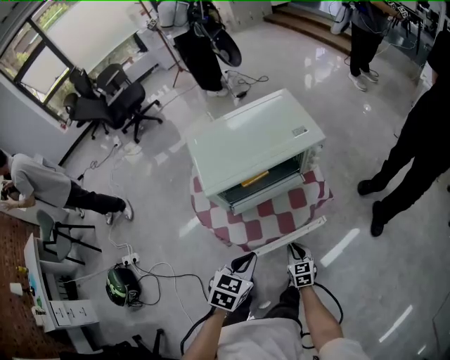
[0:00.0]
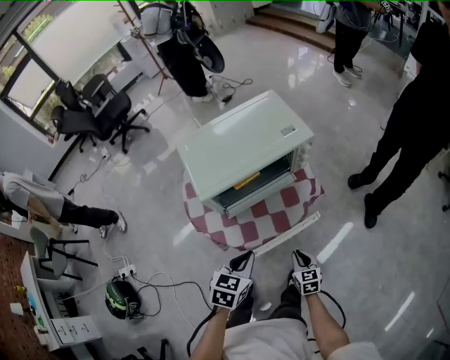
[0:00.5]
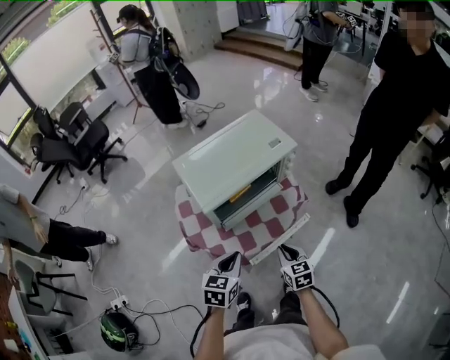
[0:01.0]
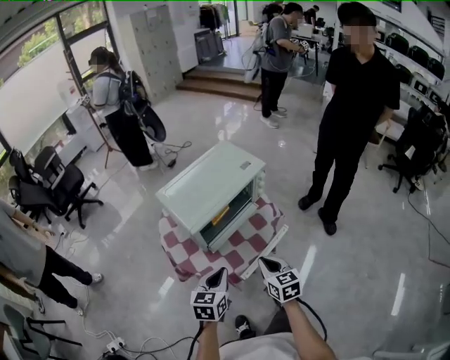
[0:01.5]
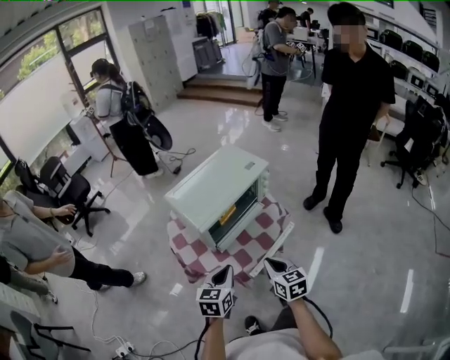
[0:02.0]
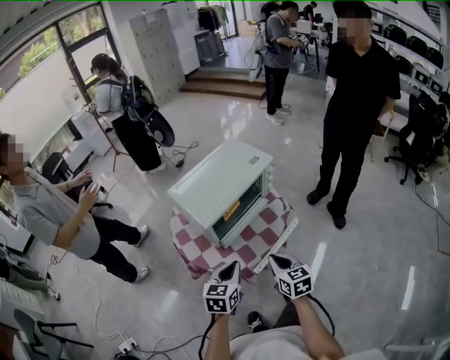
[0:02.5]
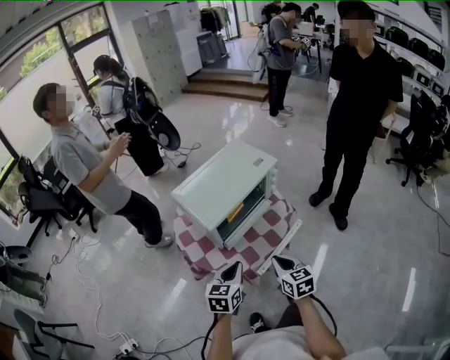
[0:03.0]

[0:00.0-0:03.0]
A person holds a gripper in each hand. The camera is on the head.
0:00.0 to 0:01.5: The right gripper is displaced upward by some 20 cm. Meanwhile the left gripper moves to the left, roughly 10 cm.
0:01.5 to 0:03.0: The grippers make only small movements.

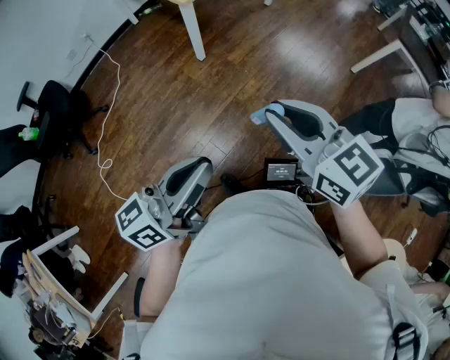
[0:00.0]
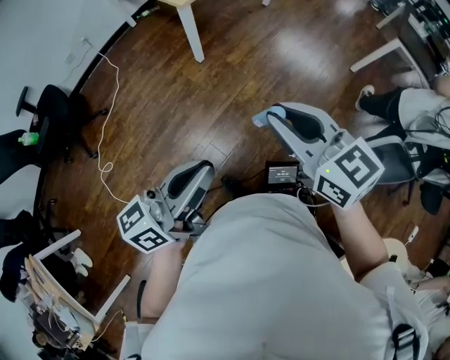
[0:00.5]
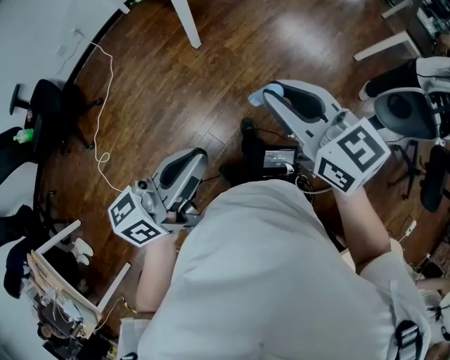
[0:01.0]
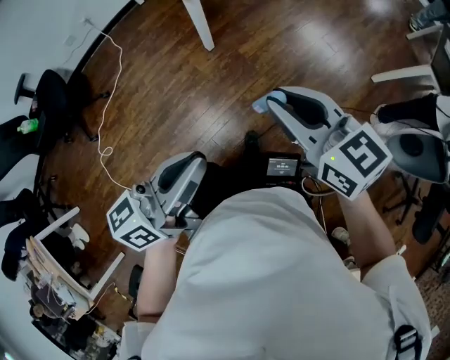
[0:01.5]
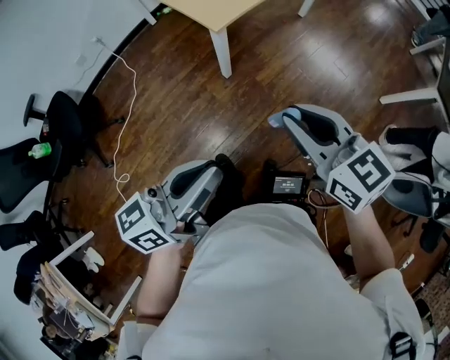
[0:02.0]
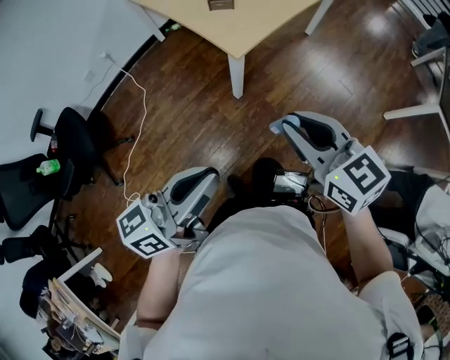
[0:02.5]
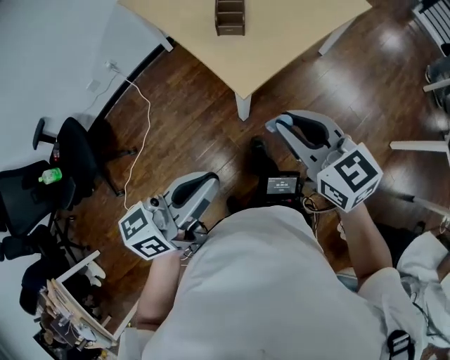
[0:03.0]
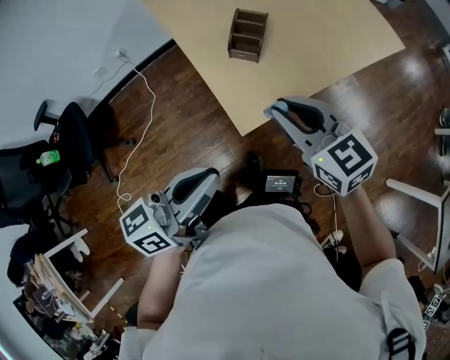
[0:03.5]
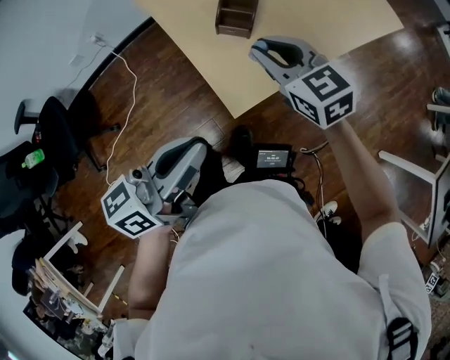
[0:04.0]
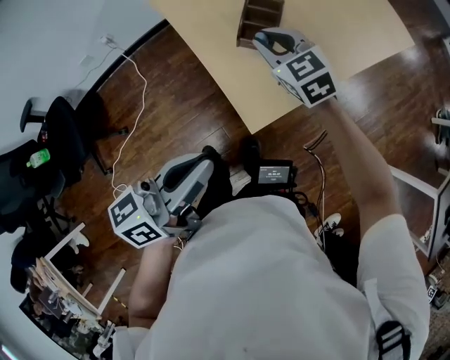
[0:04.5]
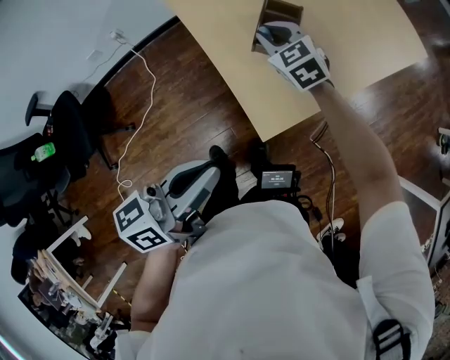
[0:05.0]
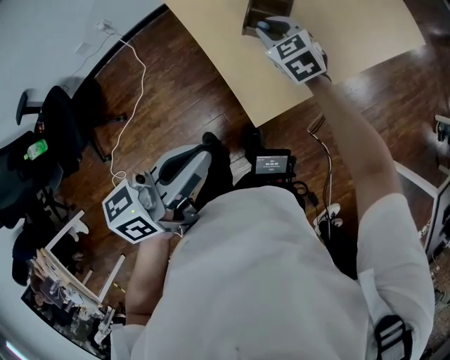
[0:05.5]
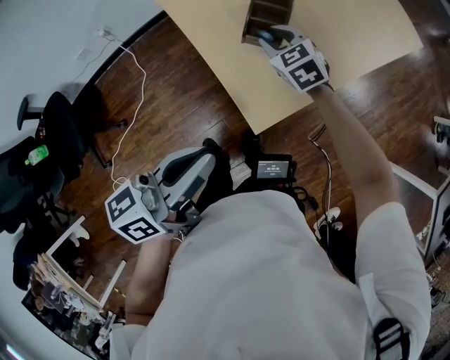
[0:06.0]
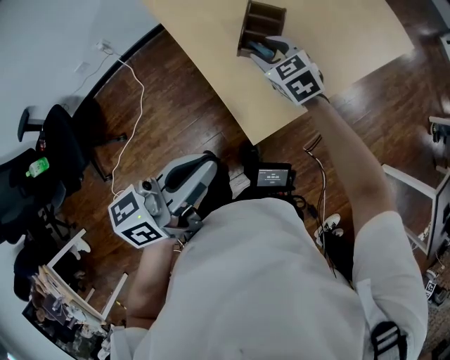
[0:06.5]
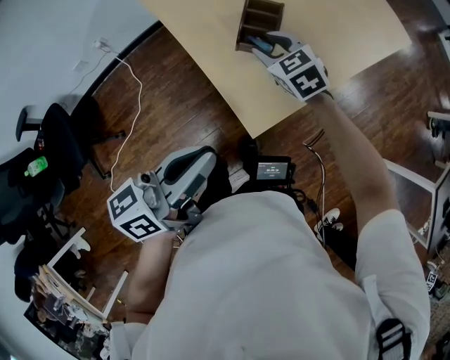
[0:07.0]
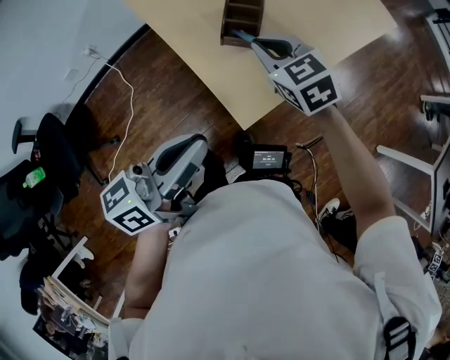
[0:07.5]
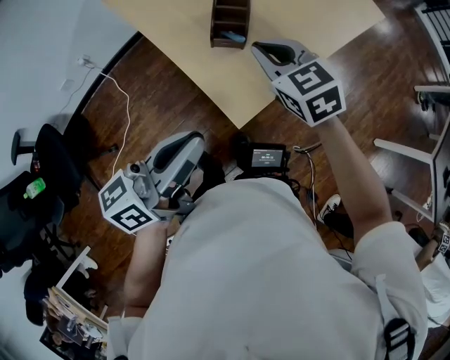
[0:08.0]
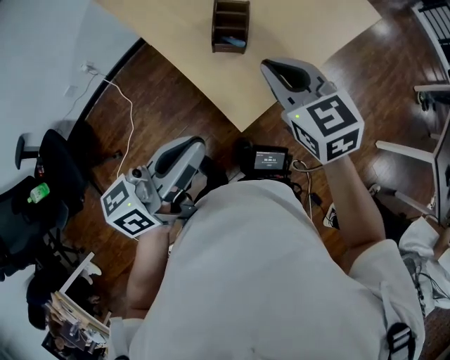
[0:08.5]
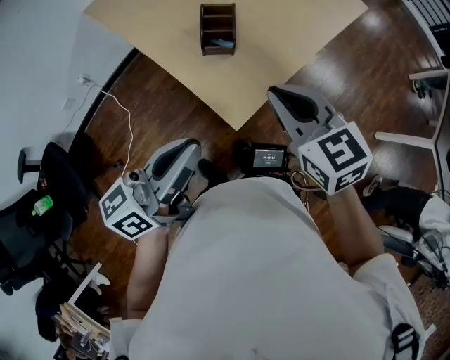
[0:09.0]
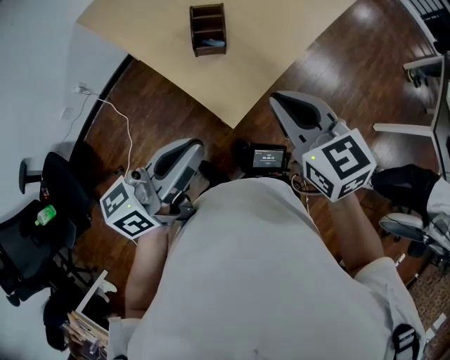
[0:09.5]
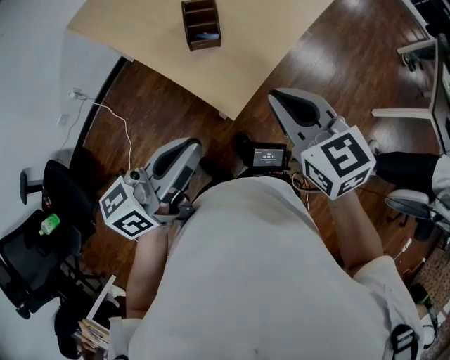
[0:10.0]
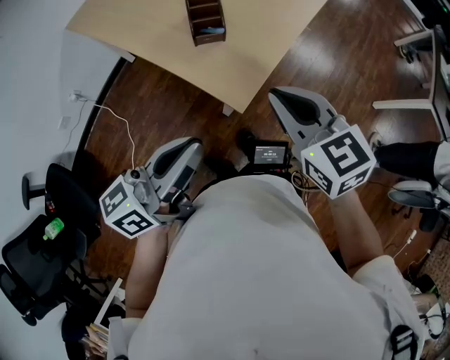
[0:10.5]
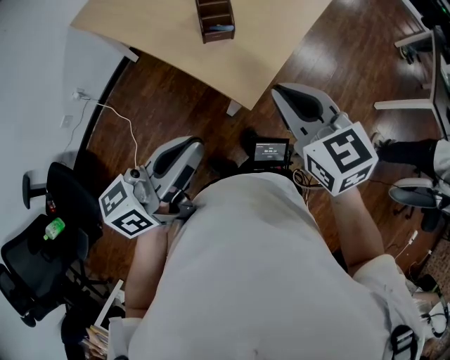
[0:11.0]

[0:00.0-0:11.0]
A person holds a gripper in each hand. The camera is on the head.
0:00.0 to 0:02.0: Both grippers travel together forward, some 25 cm.
0:02.0 to 0:03.5: Both grippers travel together forward, about 40 cm.
0:03.5 to 0:05.5: The right gripper goes approximately 30 cm forward and downward, and rotates roughly 30 degrees. Meanwhile the left gripper travels forward and to the left by roughly 10 cm.
0:05.5 to 0:07.5: The right gripper is displaced upward and backward by roughly 10 cm, and opens and closes again.
0:07.5 to 0:09.0: The right gripper is displaced backward, upward and to the right by roughly 15 cm.
0:09.0 to 0:11.0: Both grippers travel together backward, roughly 5 cm.

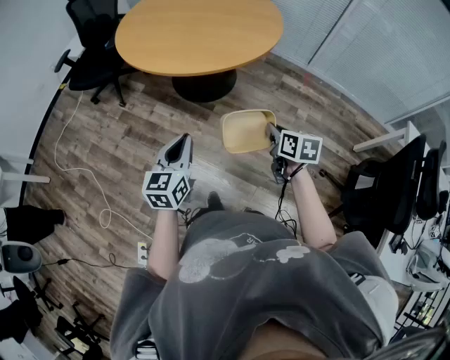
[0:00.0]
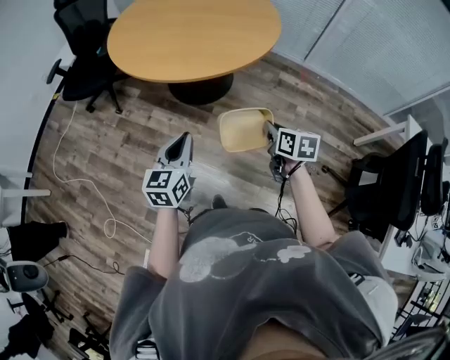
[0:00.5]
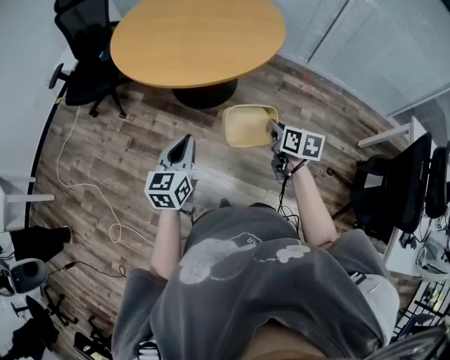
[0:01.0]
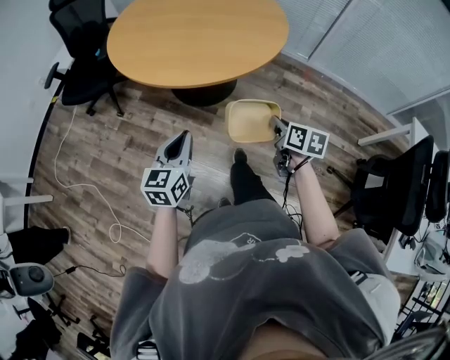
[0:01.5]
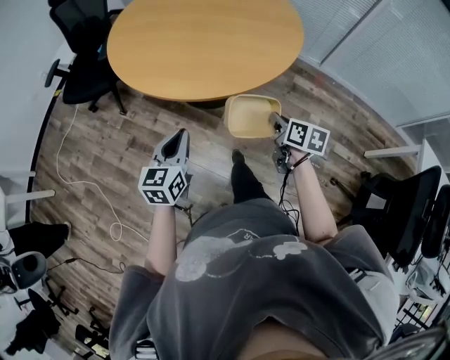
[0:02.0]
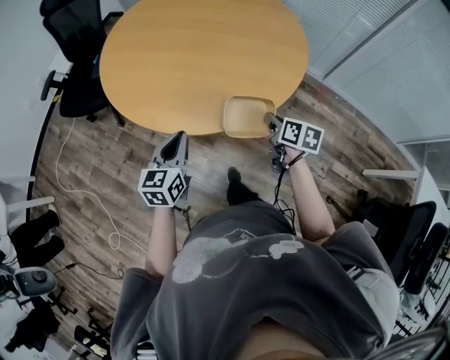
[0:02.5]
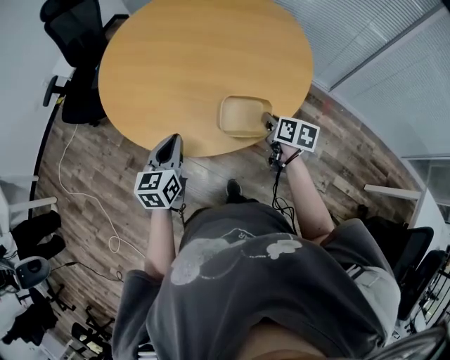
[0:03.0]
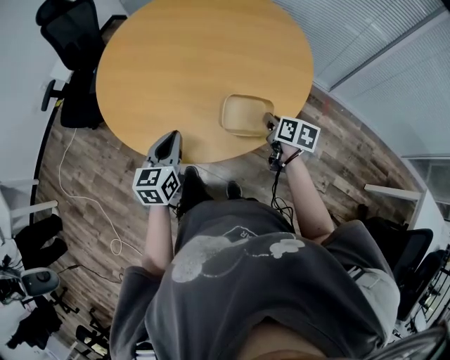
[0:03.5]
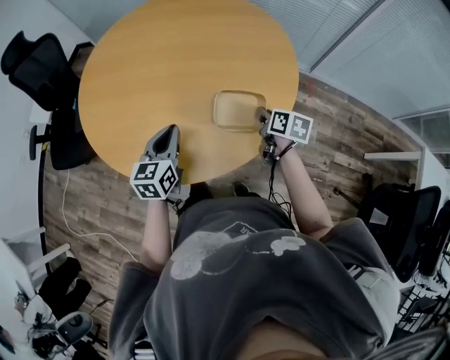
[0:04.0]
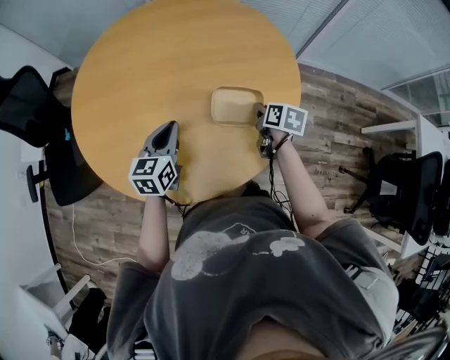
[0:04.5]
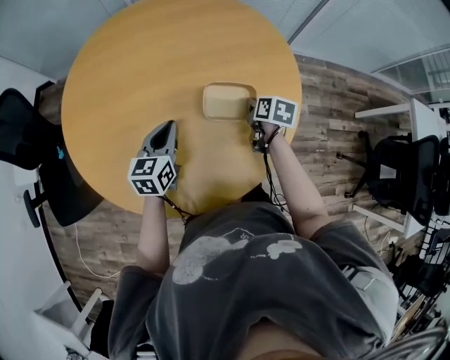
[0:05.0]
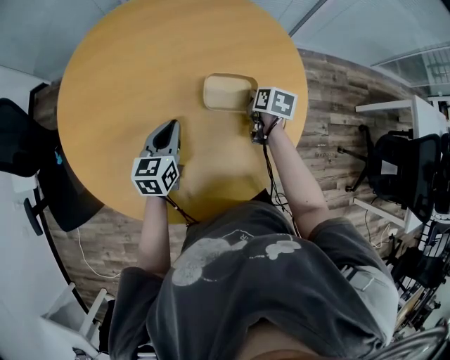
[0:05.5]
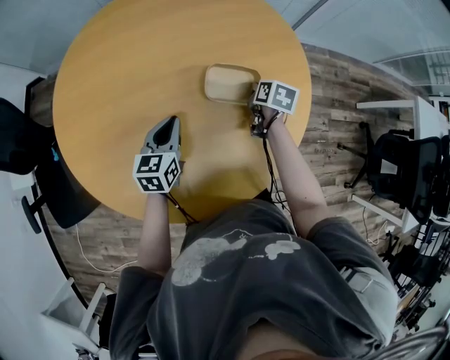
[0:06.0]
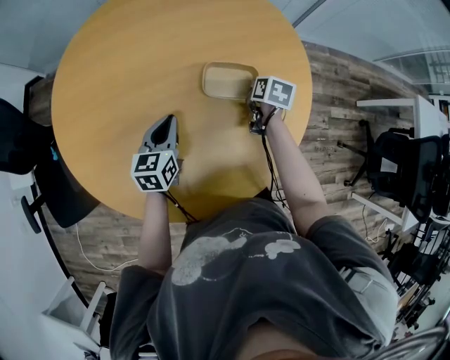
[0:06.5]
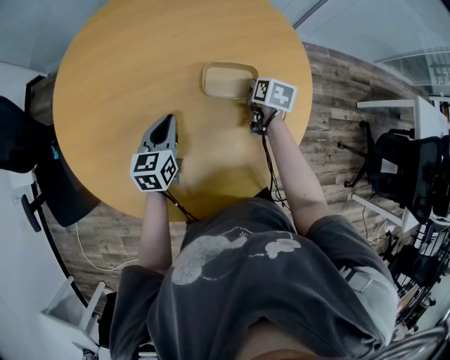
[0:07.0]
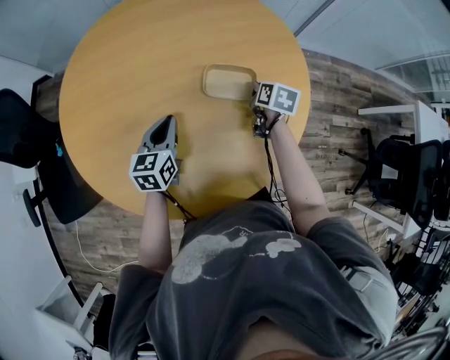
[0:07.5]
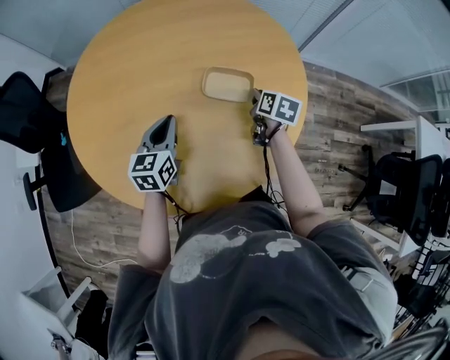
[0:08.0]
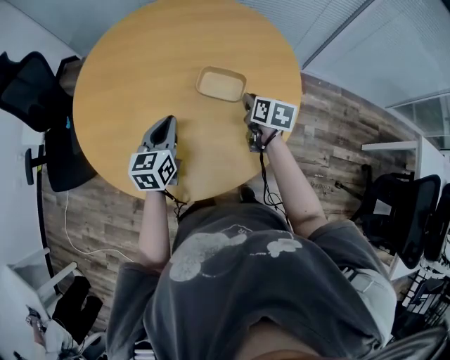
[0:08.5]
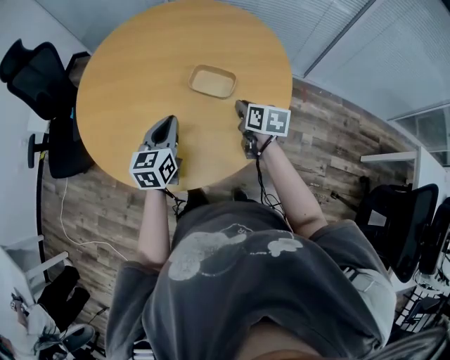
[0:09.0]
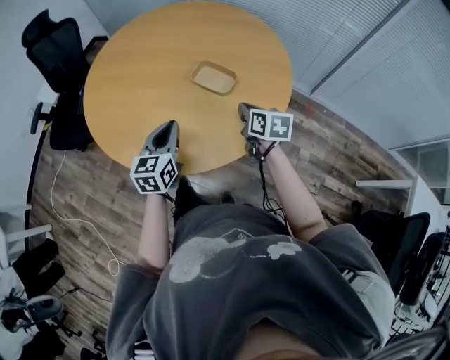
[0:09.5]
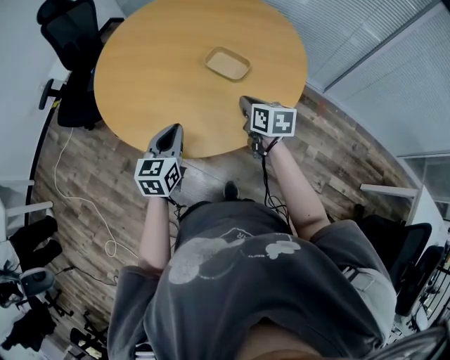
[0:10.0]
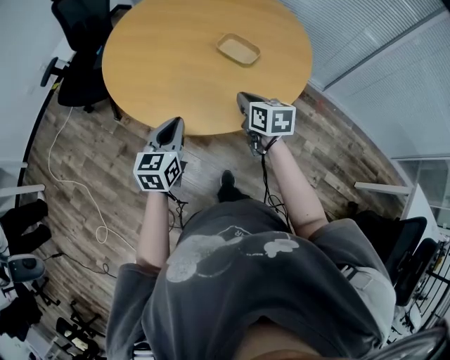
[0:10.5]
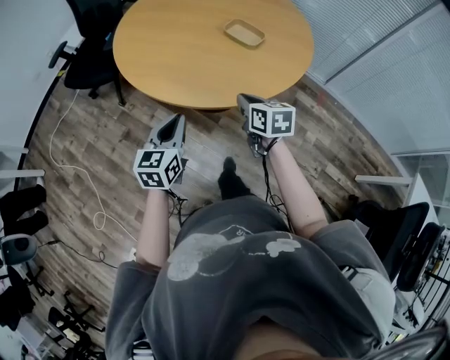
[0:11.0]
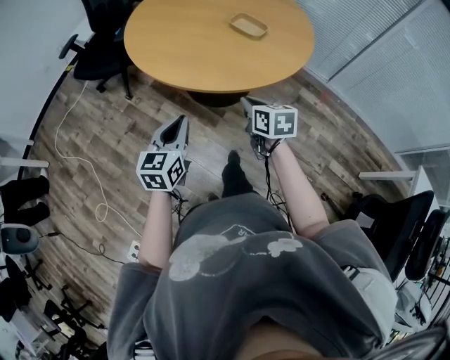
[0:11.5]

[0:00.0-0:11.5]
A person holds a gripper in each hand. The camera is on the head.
0:00.0 to 0:02.0: The grippers both shift forward by about 25 cm.
0:02.0 to 0:04.0: The grippers both shift forward by about 35 cm.
0:04.0 to 0:06.0: The left gripper shifts by about 20 cm, and turns by roughly 20 degrees. Meanwhile the right gripper shifts by approximately 20 cm, and turns by approximately 30 degrees.
0:06.0 to 0:07.5: The grippers stay close to where they were, moving slightly.
0:07.5 to 0:09.5: The right gripper changes place by about 20 cm, and swivels roughly 40 degrees. The left gripper ends up some 30 cm from where it was, and swivels approximately 30 degrees.
0:09.5 to 0:11.5: The right gripper shifts some 35 cm backward and to the left. Meanwhile the left gripper heads backward, covering about 35 cm.

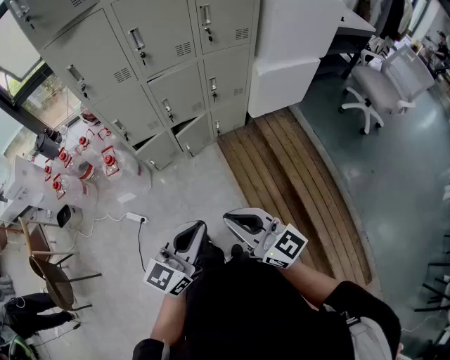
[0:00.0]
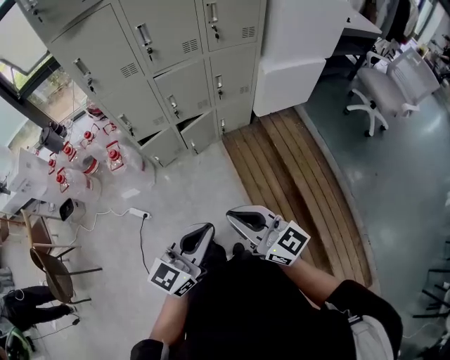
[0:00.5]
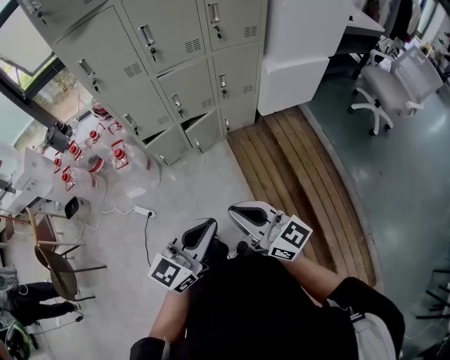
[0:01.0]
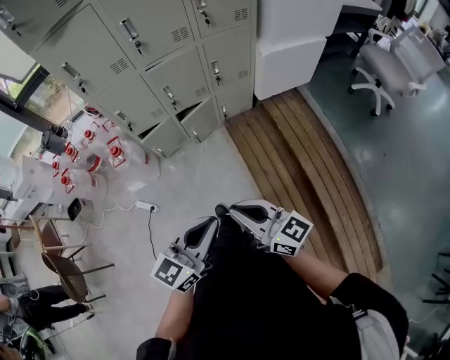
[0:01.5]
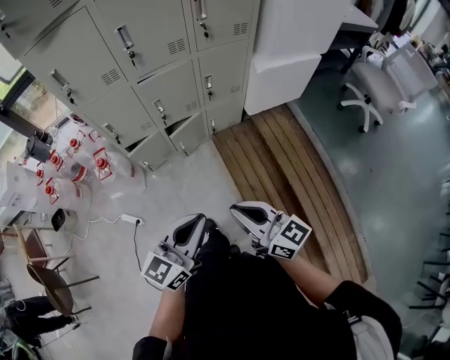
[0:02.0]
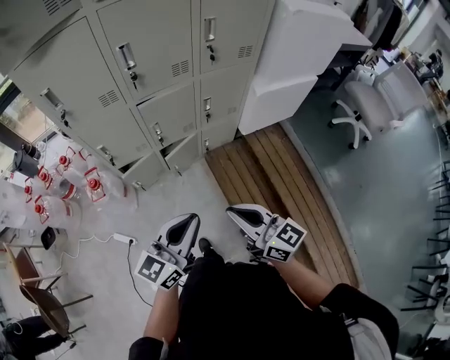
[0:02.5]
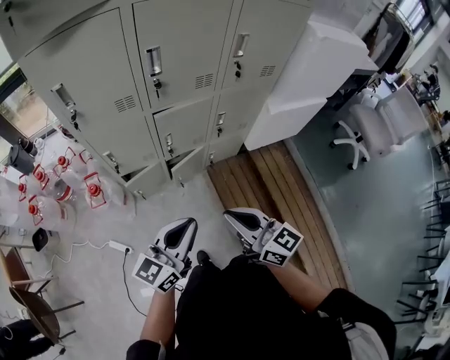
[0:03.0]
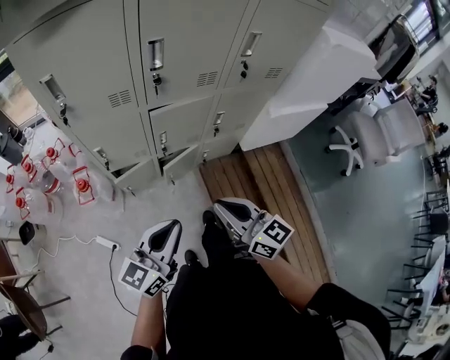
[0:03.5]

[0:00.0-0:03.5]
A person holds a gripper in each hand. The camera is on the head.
0:00.0 to 0:02.0: Both grippers move forward, approximately 10 cm.
0:02.0 to 0:03.5: Both grippers move forward and to the left, about 25 cm.
